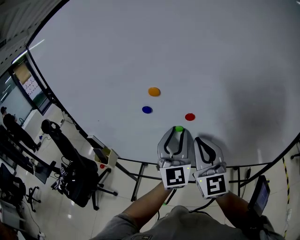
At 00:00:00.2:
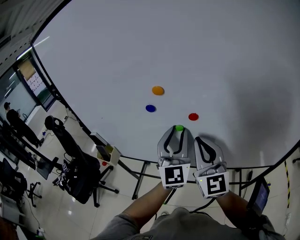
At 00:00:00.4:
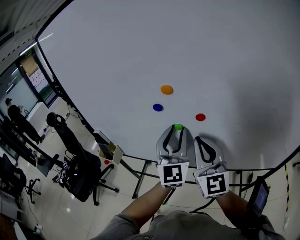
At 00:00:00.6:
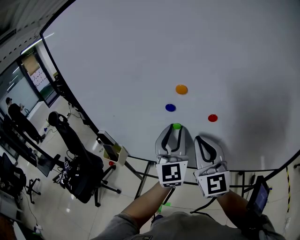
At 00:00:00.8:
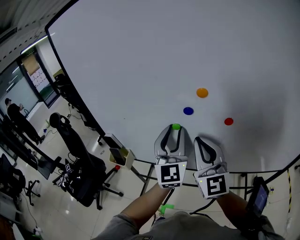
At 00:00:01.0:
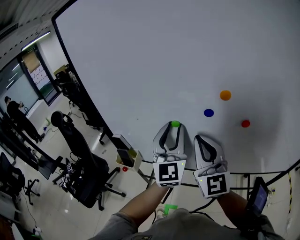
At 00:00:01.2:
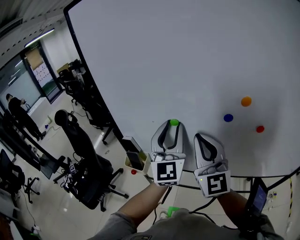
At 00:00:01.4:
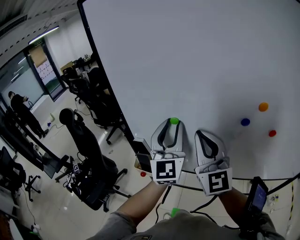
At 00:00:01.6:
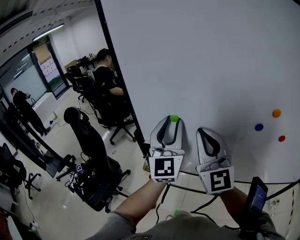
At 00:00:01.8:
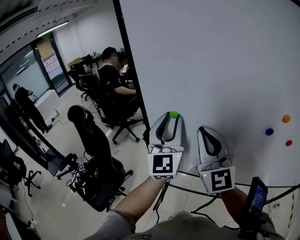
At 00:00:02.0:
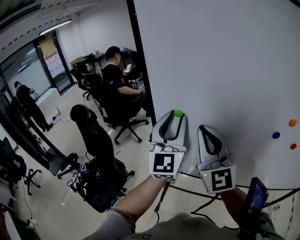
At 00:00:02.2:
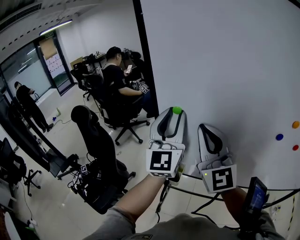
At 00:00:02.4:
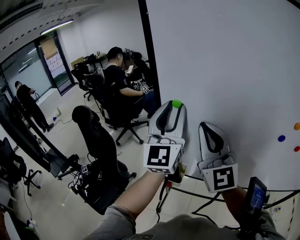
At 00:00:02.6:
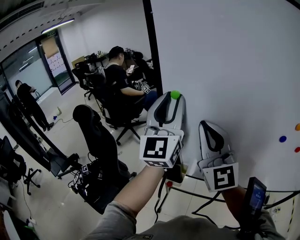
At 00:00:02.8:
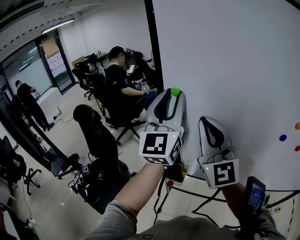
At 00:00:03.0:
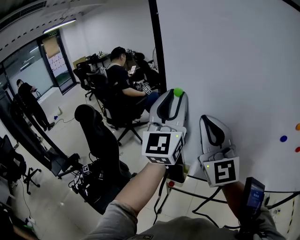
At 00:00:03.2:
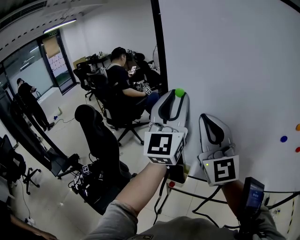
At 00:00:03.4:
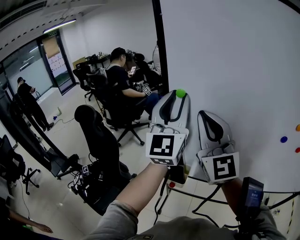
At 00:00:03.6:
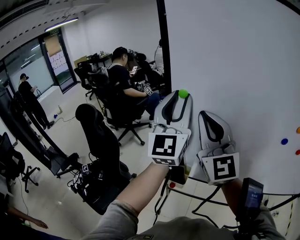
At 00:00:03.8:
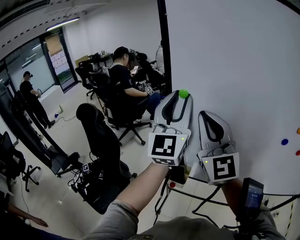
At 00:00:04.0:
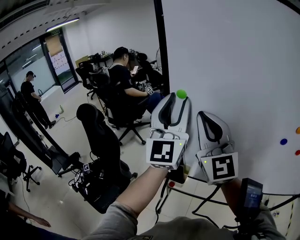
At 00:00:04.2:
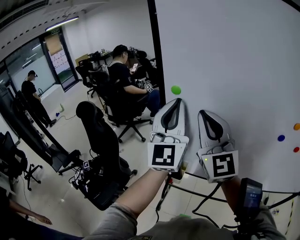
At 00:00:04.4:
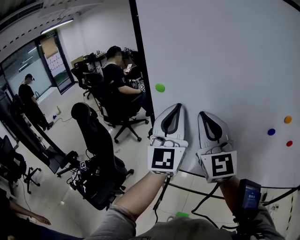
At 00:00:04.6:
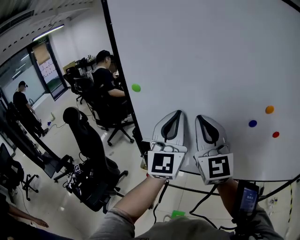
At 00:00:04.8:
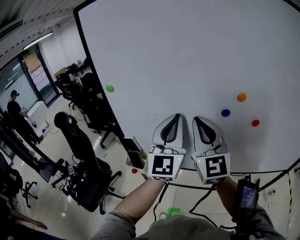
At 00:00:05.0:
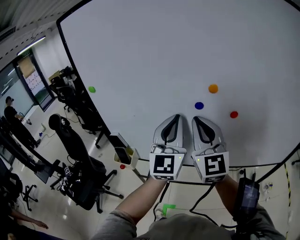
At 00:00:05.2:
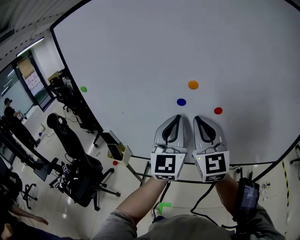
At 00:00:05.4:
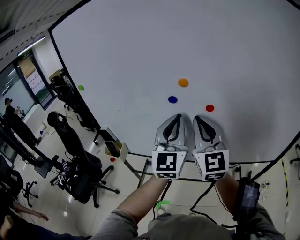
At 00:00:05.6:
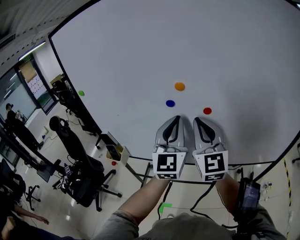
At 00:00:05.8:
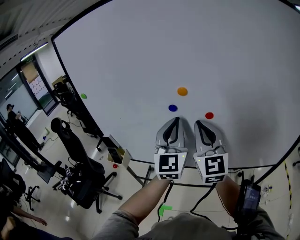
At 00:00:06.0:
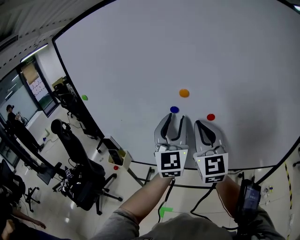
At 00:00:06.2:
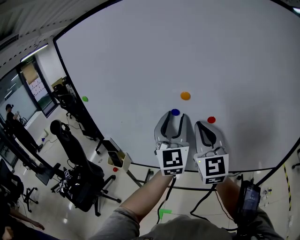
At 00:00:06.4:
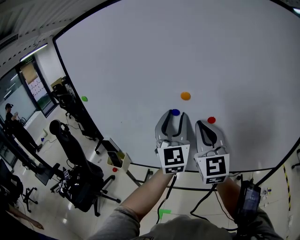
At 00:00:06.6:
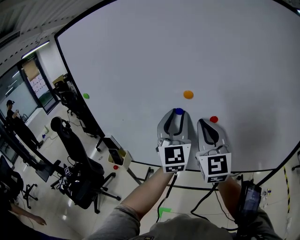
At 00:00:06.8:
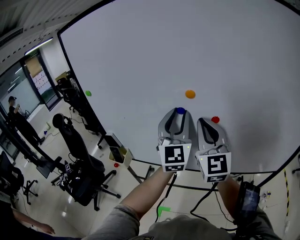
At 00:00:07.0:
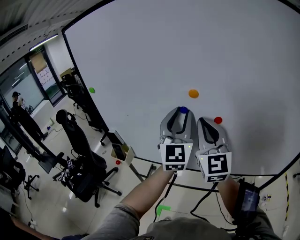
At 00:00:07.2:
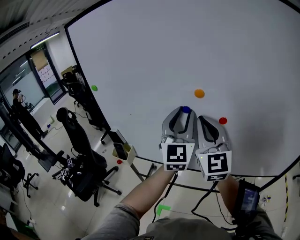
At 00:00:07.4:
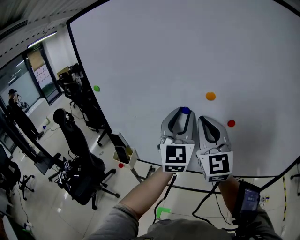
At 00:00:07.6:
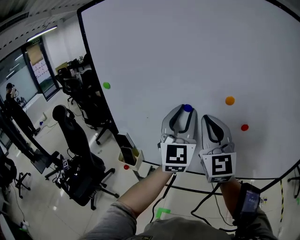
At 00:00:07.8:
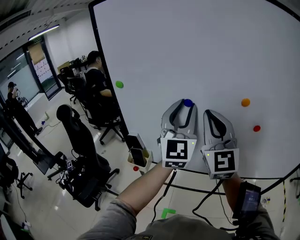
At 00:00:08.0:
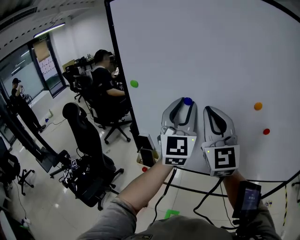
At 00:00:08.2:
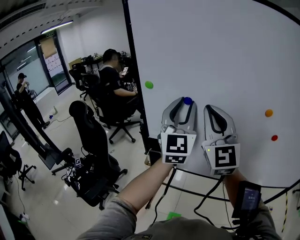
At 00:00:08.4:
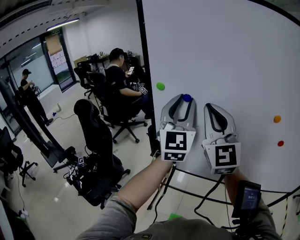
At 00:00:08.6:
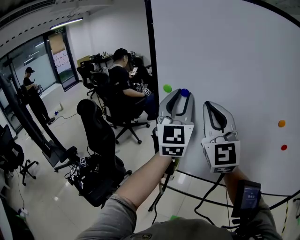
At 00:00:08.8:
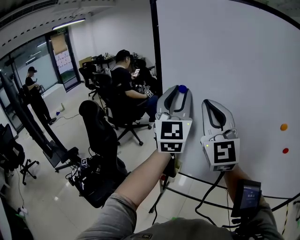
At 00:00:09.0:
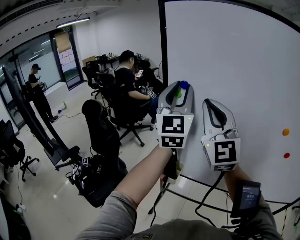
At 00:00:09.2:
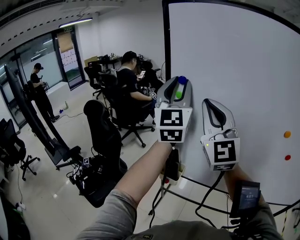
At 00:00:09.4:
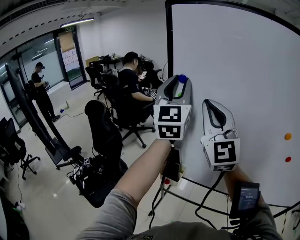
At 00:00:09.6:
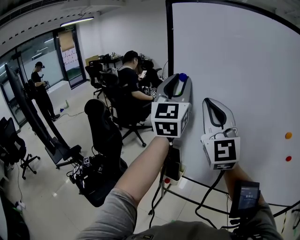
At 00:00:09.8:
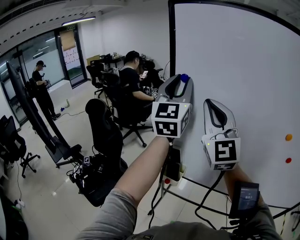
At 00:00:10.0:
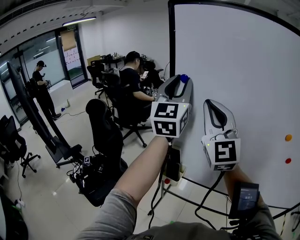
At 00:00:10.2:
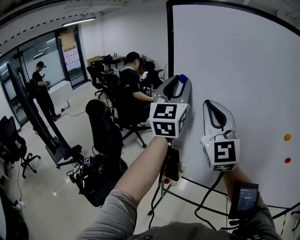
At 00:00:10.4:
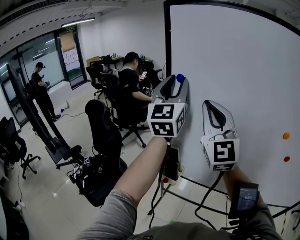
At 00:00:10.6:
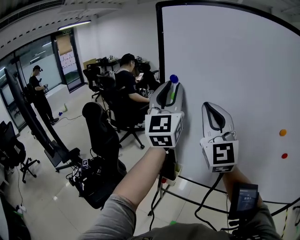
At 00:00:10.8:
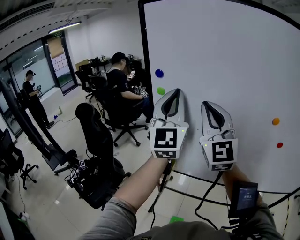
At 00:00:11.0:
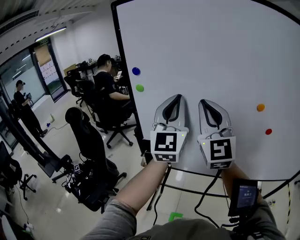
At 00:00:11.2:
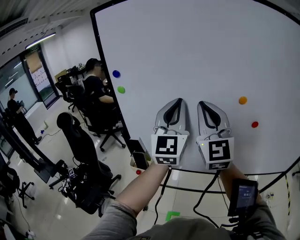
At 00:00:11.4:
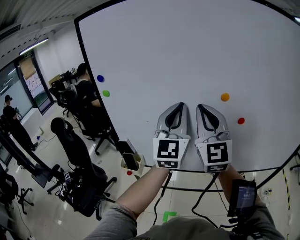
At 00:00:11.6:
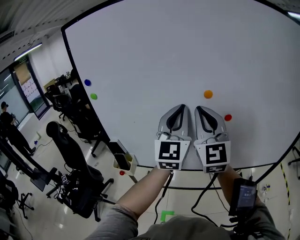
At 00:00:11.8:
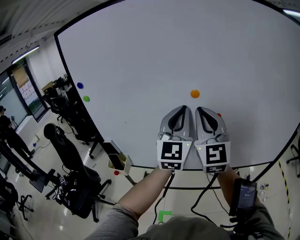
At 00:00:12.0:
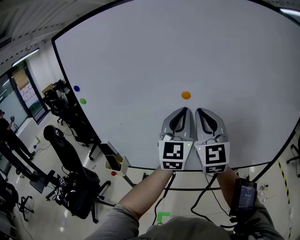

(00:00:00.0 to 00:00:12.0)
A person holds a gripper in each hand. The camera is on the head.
00:00:00.0 - 00:00:01.6: Both grippers move to the left, some 35 cm.
00:00:01.6 - 00:00:03.0: The left gripper shifts some 15 cm to the left and upward. The right gripper travels to the left by roughly 10 cm.
00:00:03.0 - 00:00:04.4: The left gripper shifts roughly 5 cm to the right, and closes.
00:00:04.4 - 00:00:06.0: Both grippers travel together to the right, approximately 30 cm. The left gripper opens its fingers.
00:00:06.0 - 00:00:07.6: The two grippers go roughly 10 cm to the left.
00:00:07.6 - 00:00:09.0: The two grippers go approximately 25 cm to the left.
00:00:09.0 - 00:00:10.4: The grippers move only a little.
00:00:10.4 - 00:00:12.0: Both grippers travel together to the right, about 35 cm. The left gripper swivels some 20 degrees, and closes its fingers. The right gripper changes its angle by approximately 20 degrees.

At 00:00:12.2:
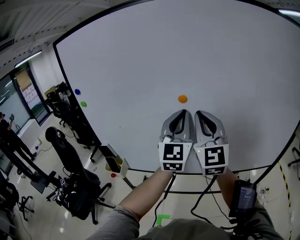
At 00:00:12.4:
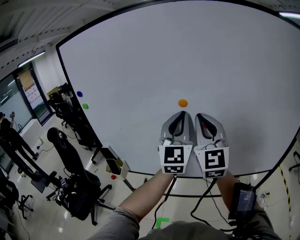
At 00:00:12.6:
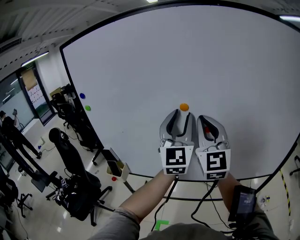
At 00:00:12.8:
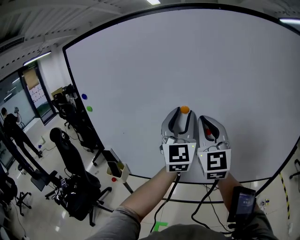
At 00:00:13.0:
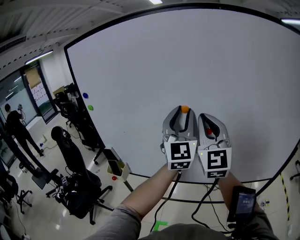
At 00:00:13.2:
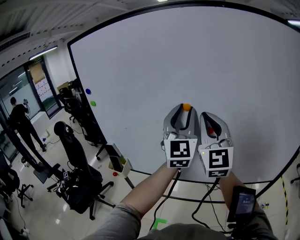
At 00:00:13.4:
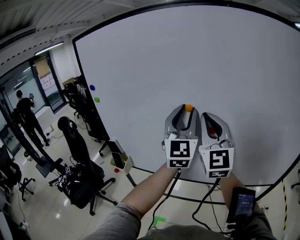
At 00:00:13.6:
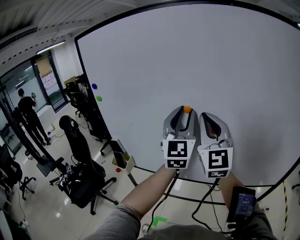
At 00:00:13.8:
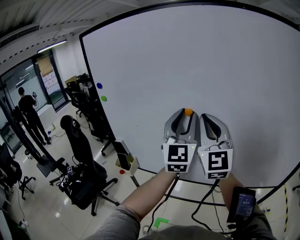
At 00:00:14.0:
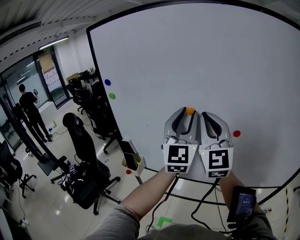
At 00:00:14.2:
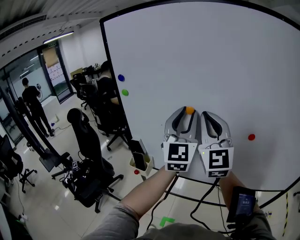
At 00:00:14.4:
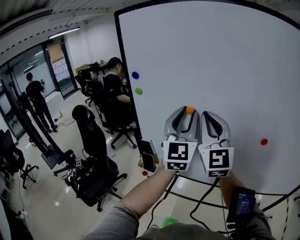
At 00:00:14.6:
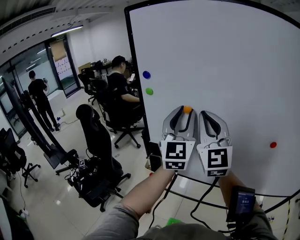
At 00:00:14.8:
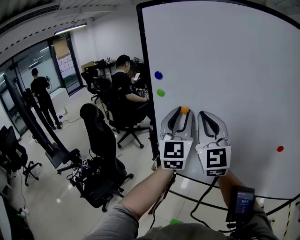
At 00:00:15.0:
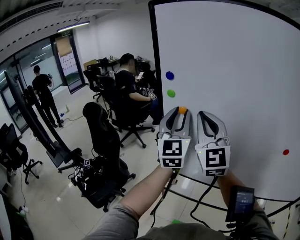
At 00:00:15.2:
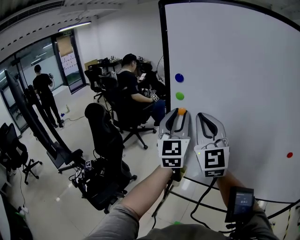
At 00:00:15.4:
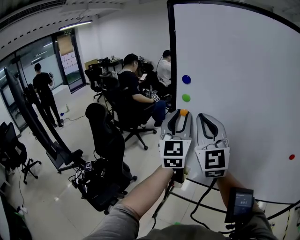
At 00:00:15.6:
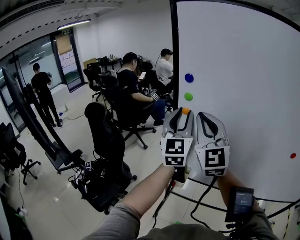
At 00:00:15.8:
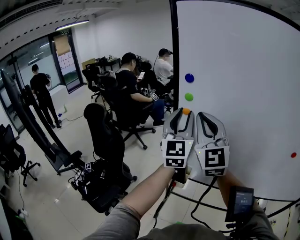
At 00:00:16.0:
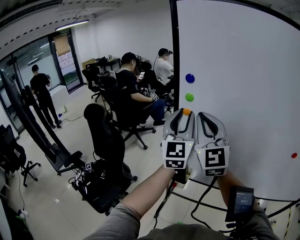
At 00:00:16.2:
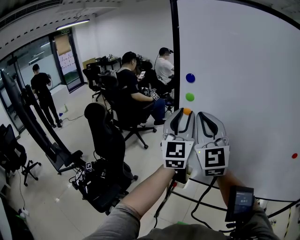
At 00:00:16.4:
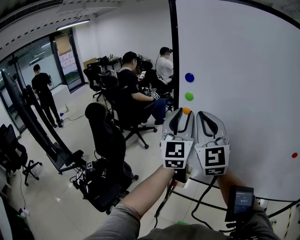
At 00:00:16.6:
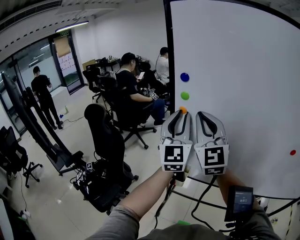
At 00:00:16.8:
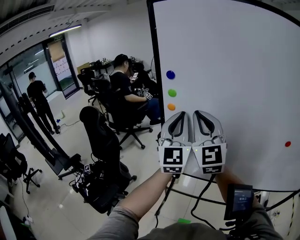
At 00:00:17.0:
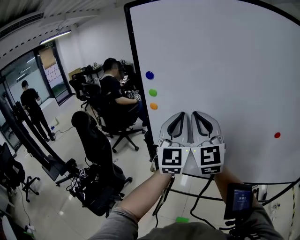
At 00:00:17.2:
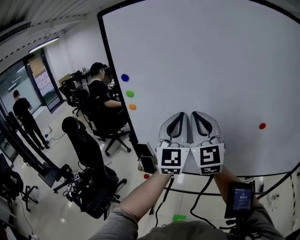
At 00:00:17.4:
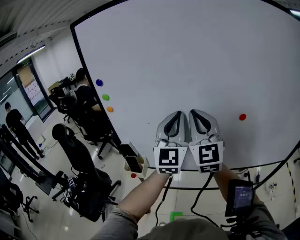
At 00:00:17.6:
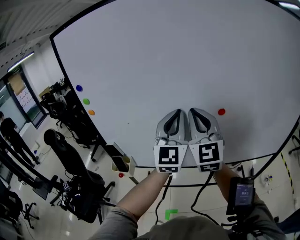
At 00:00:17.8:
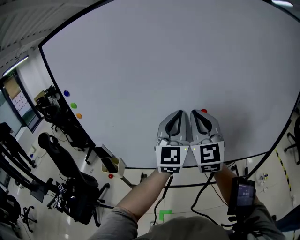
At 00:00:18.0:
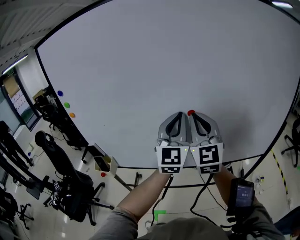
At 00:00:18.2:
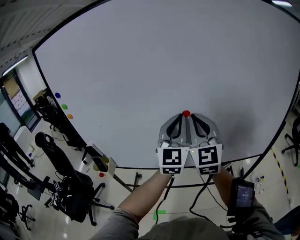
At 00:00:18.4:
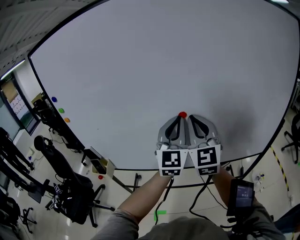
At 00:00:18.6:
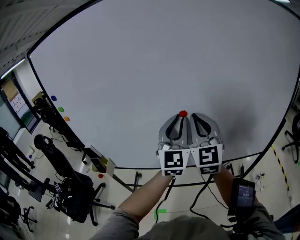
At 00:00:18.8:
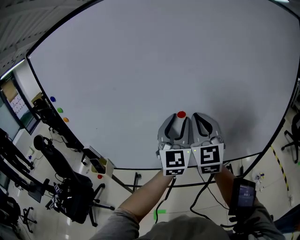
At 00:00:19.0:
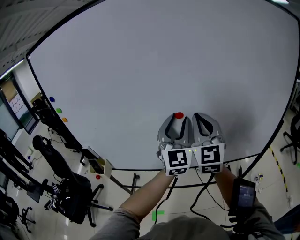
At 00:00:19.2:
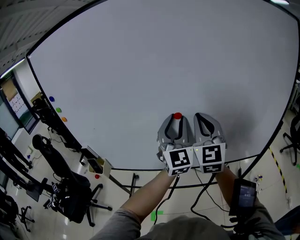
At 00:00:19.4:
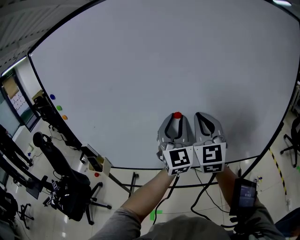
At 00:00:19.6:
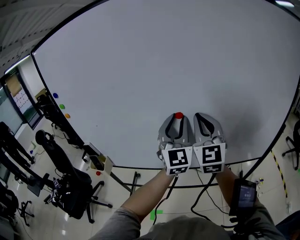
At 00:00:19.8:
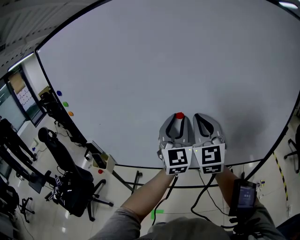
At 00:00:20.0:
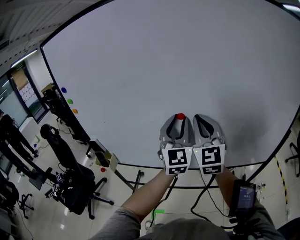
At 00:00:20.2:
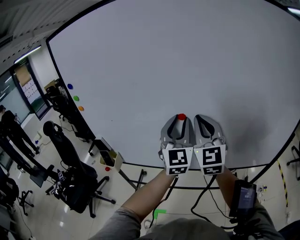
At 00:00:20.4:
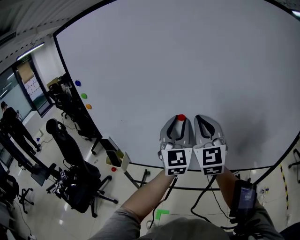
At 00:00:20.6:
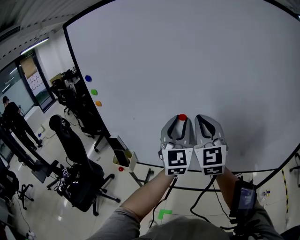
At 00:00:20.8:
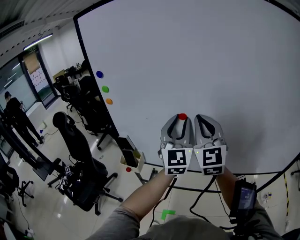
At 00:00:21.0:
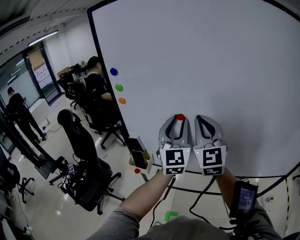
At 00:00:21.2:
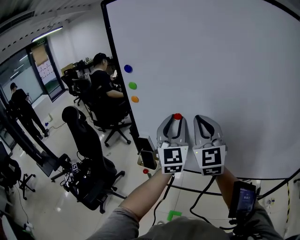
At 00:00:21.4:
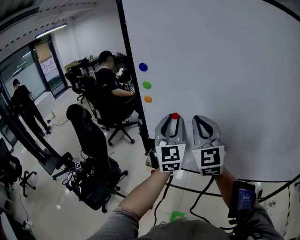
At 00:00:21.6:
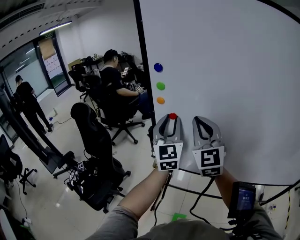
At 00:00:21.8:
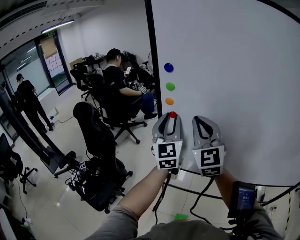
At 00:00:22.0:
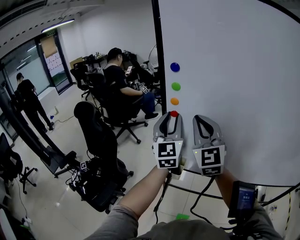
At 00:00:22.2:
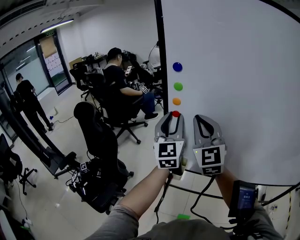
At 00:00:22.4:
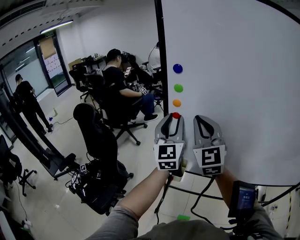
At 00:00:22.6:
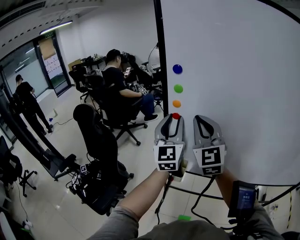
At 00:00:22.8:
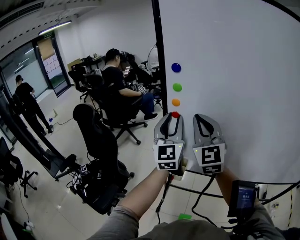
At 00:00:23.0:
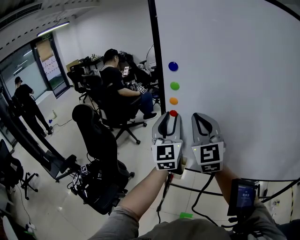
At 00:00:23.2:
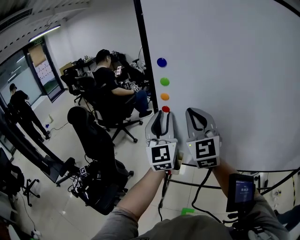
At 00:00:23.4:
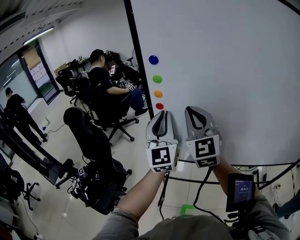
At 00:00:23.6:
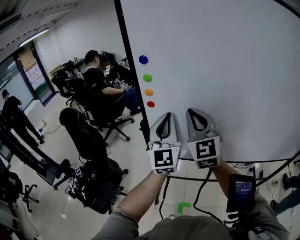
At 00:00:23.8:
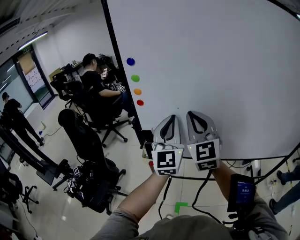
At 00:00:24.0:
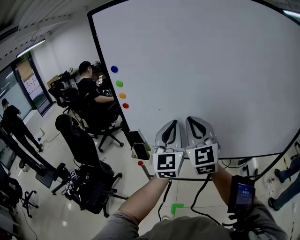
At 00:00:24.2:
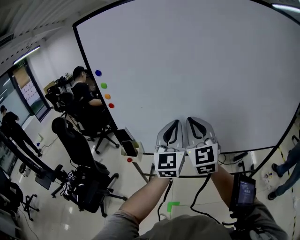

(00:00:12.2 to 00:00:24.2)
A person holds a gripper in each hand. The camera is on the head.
00:00:12.2 - 00:00:13.8: The left gripper opens its fingers.
00:00:13.8 - 00:00:15.2: The grippers both shift to the left by approximately 35 cm.
00:00:15.2 - 00:00:16.6: There are only small adjustments of the grippers.
00:00:16.6 - 00:00:18.2: Both grippers are carried to the right, some 50 cm. The left gripper rotates some 20 degrees. The right gripper turns by approximately 20 degrees.
00:00:18.2 - 00:00:19.8: The left gripper opens its fingers.
00:00:19.8 - 00:00:21.2: The grippers both shift to the left by approximately 30 cm.
00:00:21.2 - 00:00:22.6: Both grippers move to the left and forward, roughly 15 cm.
00:00:22.6 - 00:00:24.2: Both grippers move to the right and backward, some 30 cm. The left gripper closes.
